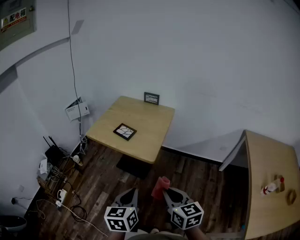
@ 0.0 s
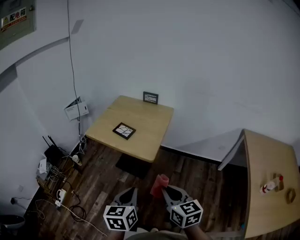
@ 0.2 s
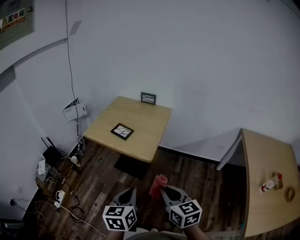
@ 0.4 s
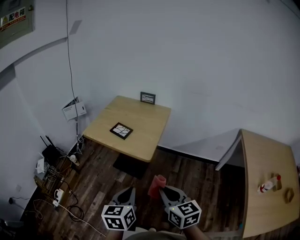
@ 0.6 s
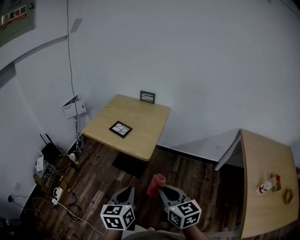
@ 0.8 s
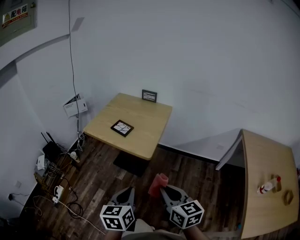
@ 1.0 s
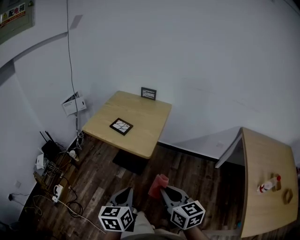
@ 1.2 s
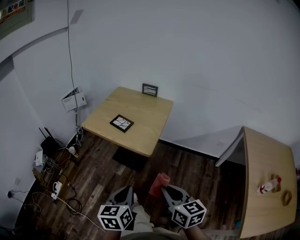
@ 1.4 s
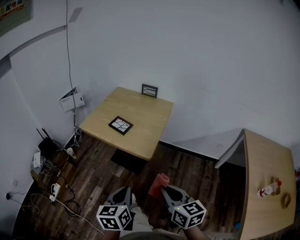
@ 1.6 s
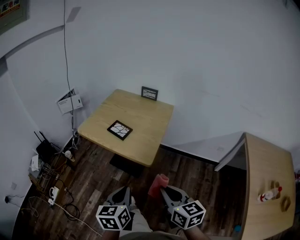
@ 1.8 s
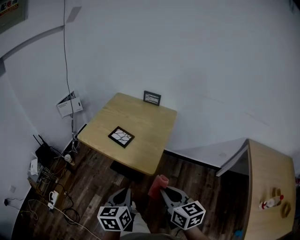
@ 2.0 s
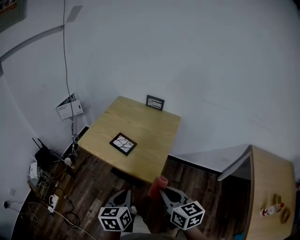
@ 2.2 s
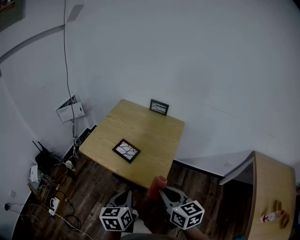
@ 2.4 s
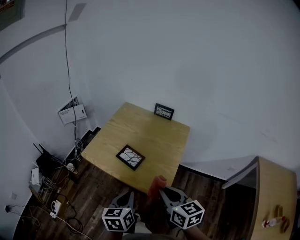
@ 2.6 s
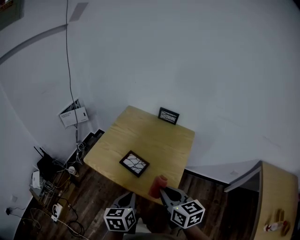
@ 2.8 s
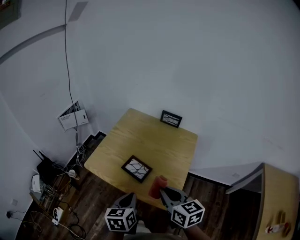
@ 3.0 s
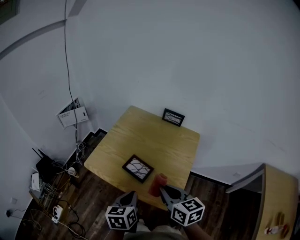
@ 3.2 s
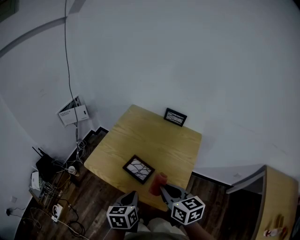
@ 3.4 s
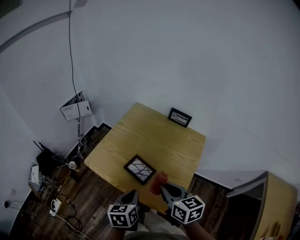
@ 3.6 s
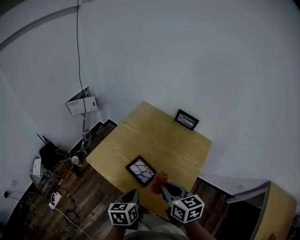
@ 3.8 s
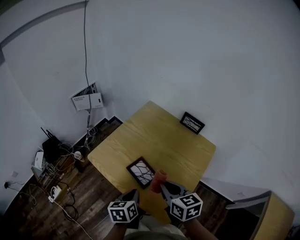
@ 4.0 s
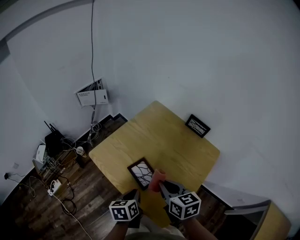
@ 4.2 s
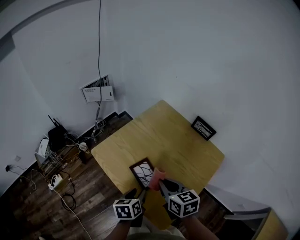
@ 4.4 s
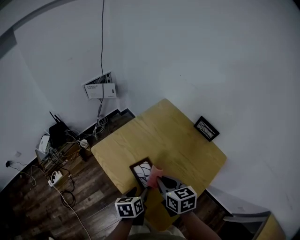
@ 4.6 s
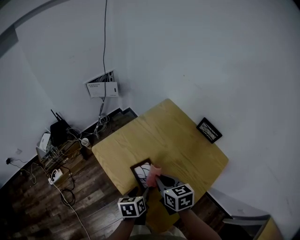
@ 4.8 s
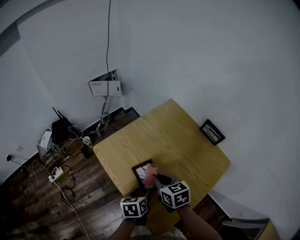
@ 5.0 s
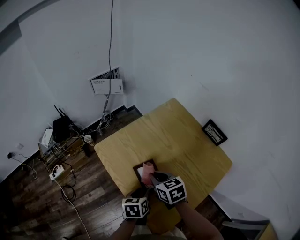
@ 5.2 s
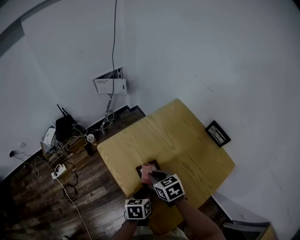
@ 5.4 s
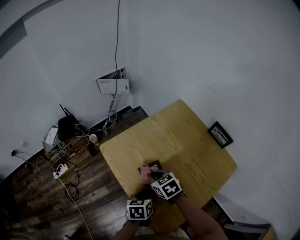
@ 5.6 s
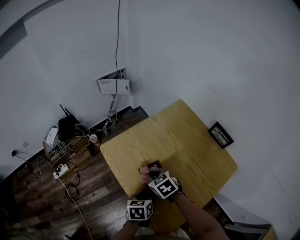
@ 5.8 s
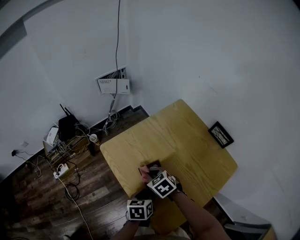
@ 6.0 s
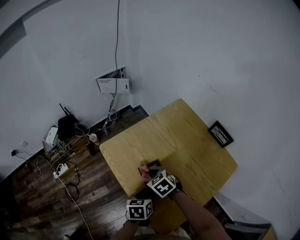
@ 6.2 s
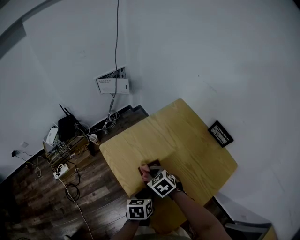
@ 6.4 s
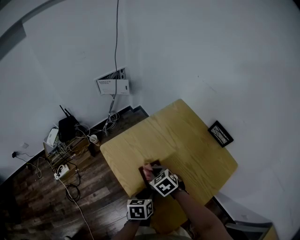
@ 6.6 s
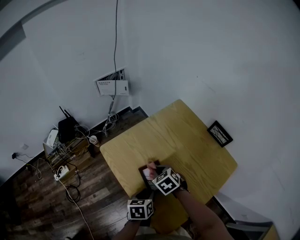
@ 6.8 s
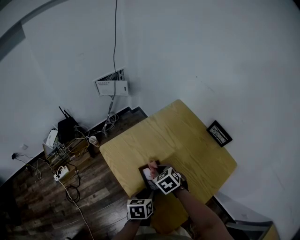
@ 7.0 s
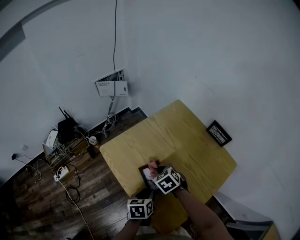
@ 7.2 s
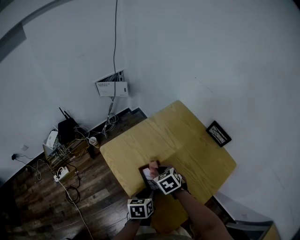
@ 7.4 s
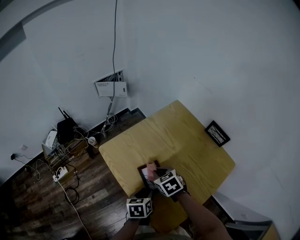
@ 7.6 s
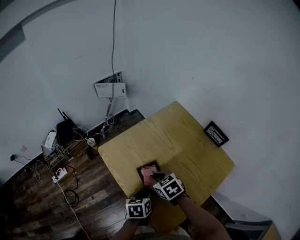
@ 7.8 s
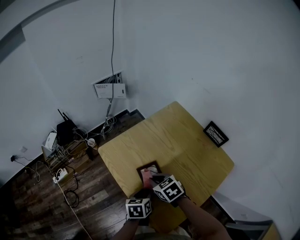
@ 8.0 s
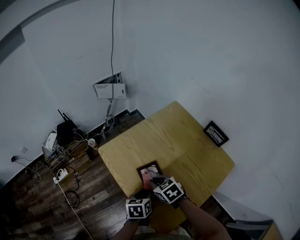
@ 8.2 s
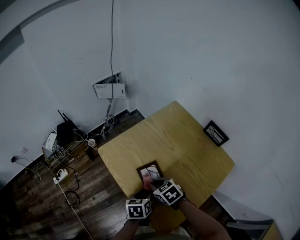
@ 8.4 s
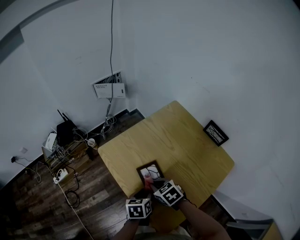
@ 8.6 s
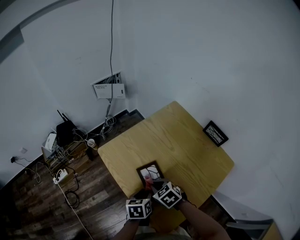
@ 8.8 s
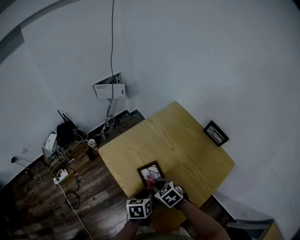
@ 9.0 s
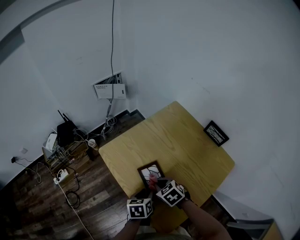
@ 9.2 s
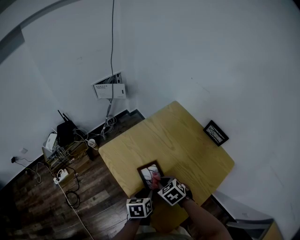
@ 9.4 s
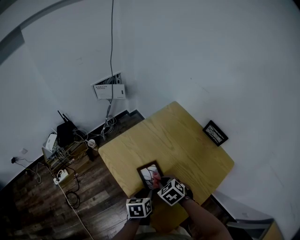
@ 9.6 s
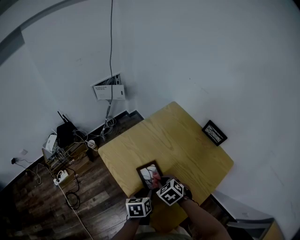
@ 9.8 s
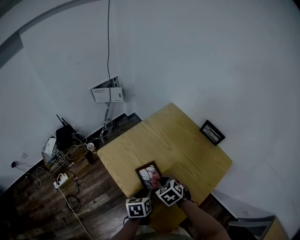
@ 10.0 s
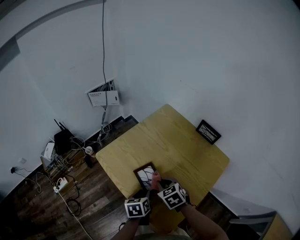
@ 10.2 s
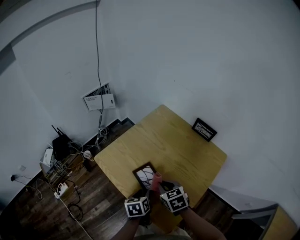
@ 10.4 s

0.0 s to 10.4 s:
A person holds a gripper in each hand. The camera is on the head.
0.0 to 1.4 s: The grippers stay close to where they were, moving slightly.
1.4 to 3.0 s: Both grippers move forward, about 35 cm.
3.0 to 4.4 s: The left gripper goes about 15 cm downward and forward, rotates approximately 30 degrees, and opens; the right gripper travels forward and downward by approximately 15 cm, and swivels about 20 degrees.
4.4 to 6.0 s: The right gripper shifts about 15 cm downward, to the left and forward, and turns by approximately 40 degrees.
6.0 to 7.4 s: The right gripper goes about 5 cm to the right.
7.4 to 9.0 s: The right gripper goes approximately 5 cm backward.
9.0 to 10.4 s: The right gripper heads upward, covering about 5 cm, and swivels roughly 30 degrees.

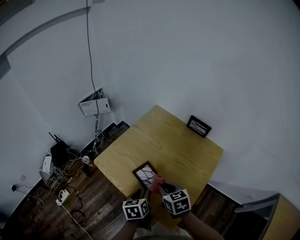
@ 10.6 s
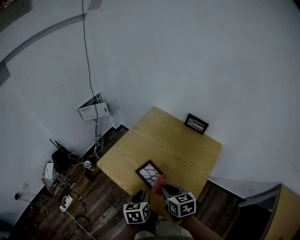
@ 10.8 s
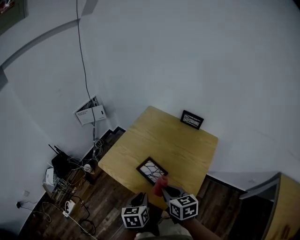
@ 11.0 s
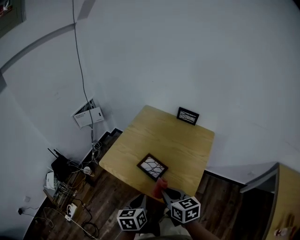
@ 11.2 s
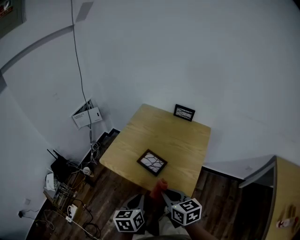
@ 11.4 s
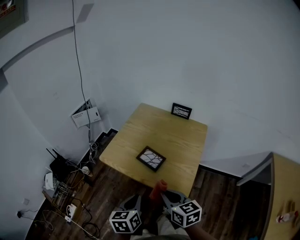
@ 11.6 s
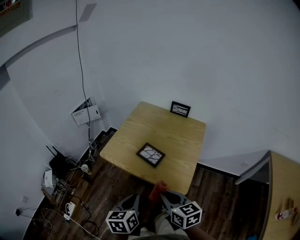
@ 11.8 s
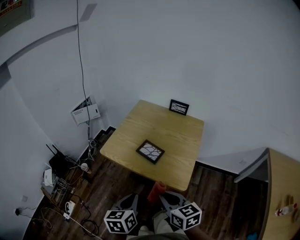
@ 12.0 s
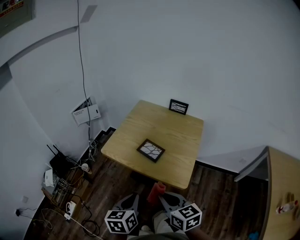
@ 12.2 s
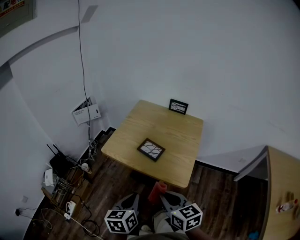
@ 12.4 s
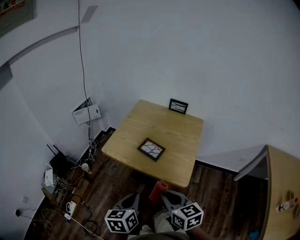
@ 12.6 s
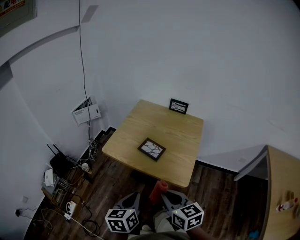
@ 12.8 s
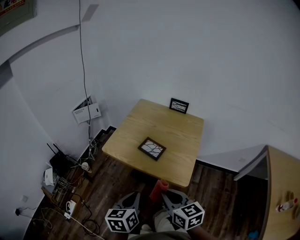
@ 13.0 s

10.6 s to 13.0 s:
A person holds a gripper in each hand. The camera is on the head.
10.6 to 11.8 s: The left gripper heads backward, upward and to the left, covering some 25 cm, changes its angle by roughly 20 degrees, and closes. Meanwhile the right gripper travels backward and upward by about 25 cm, and turns by some 20 degrees.
11.8 to 13.0 s: The right gripper changes place by some 5 cm.

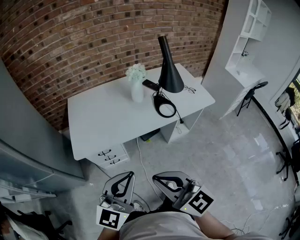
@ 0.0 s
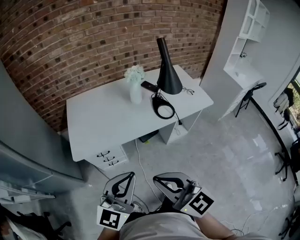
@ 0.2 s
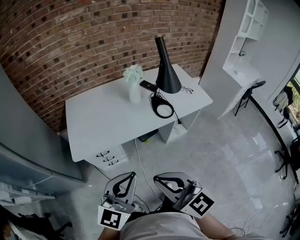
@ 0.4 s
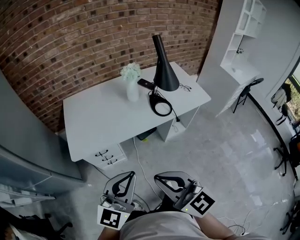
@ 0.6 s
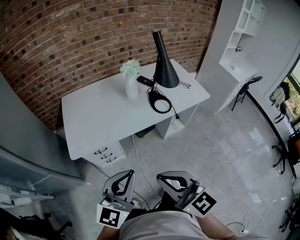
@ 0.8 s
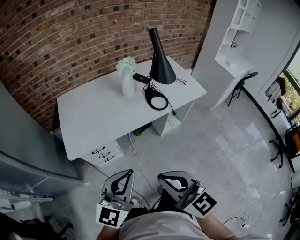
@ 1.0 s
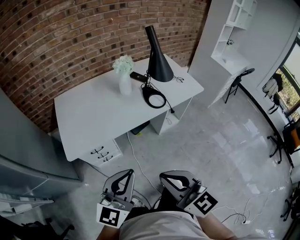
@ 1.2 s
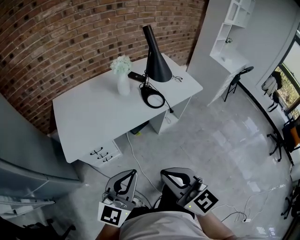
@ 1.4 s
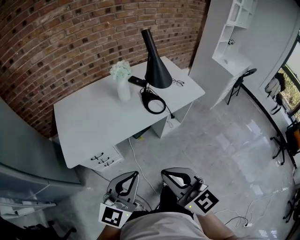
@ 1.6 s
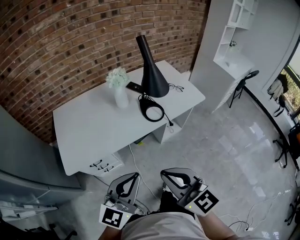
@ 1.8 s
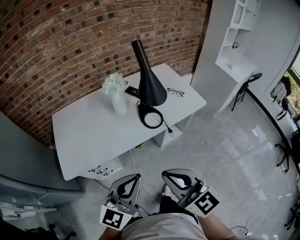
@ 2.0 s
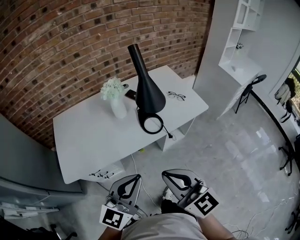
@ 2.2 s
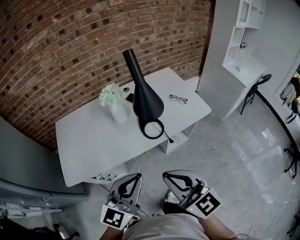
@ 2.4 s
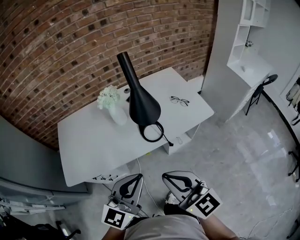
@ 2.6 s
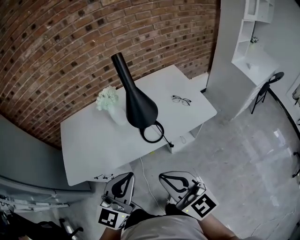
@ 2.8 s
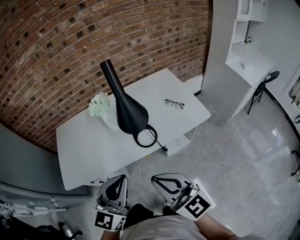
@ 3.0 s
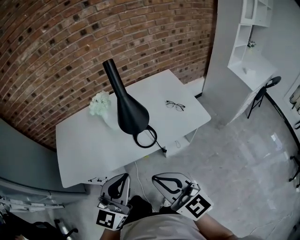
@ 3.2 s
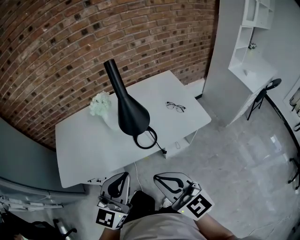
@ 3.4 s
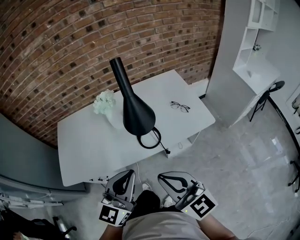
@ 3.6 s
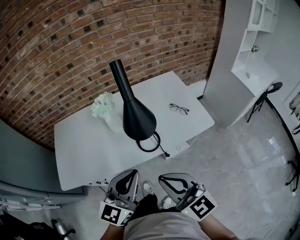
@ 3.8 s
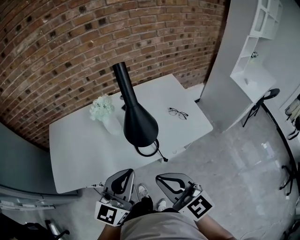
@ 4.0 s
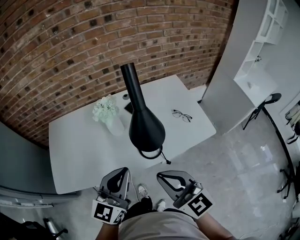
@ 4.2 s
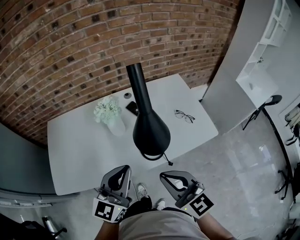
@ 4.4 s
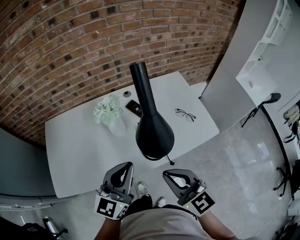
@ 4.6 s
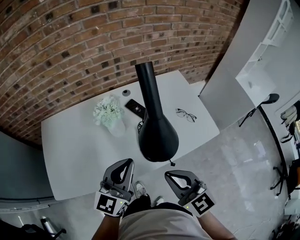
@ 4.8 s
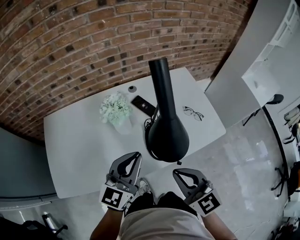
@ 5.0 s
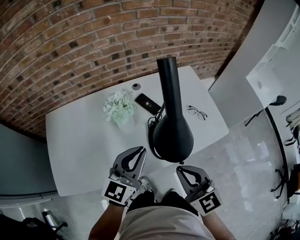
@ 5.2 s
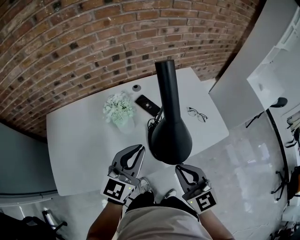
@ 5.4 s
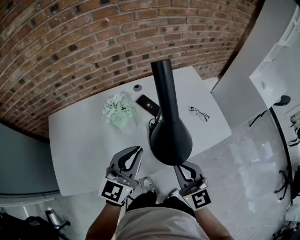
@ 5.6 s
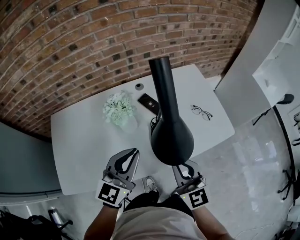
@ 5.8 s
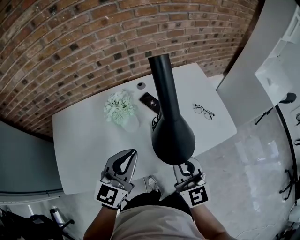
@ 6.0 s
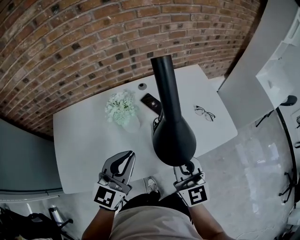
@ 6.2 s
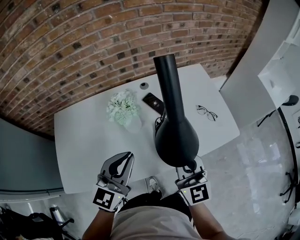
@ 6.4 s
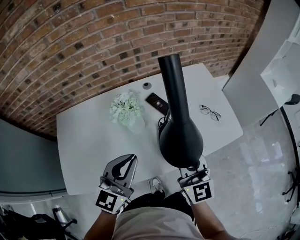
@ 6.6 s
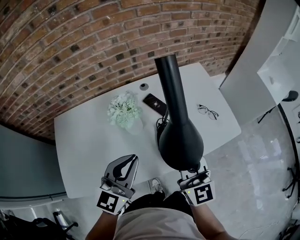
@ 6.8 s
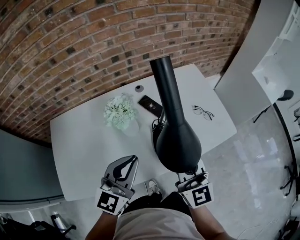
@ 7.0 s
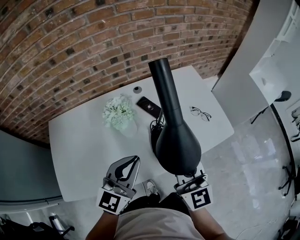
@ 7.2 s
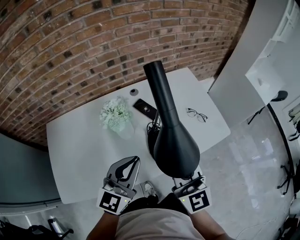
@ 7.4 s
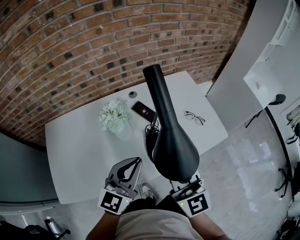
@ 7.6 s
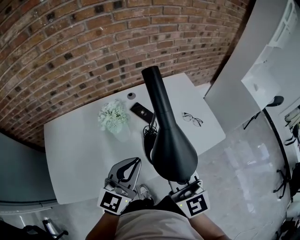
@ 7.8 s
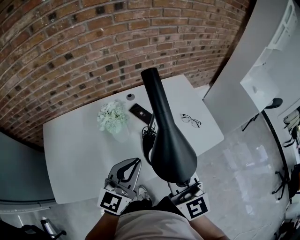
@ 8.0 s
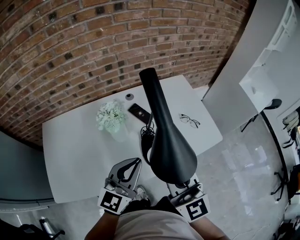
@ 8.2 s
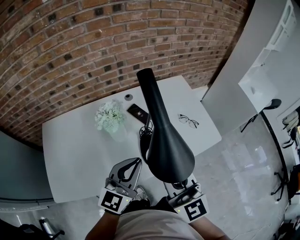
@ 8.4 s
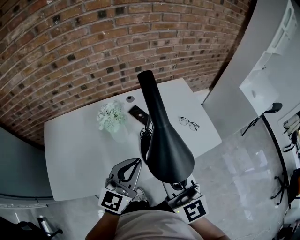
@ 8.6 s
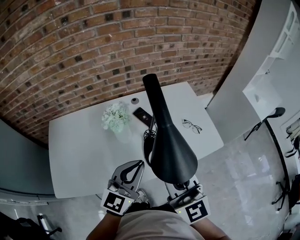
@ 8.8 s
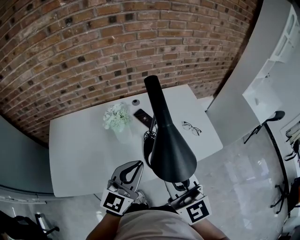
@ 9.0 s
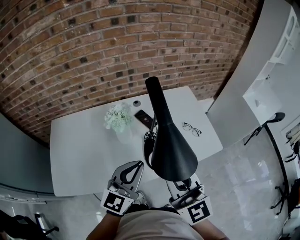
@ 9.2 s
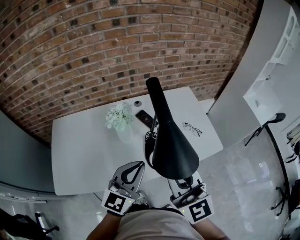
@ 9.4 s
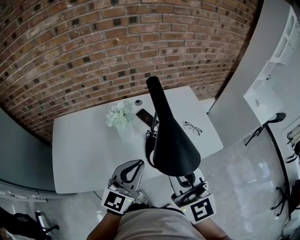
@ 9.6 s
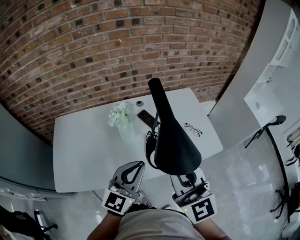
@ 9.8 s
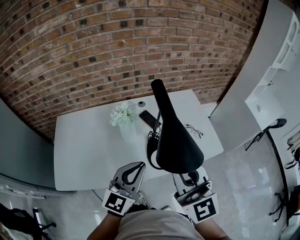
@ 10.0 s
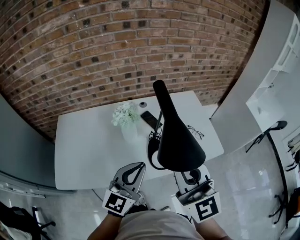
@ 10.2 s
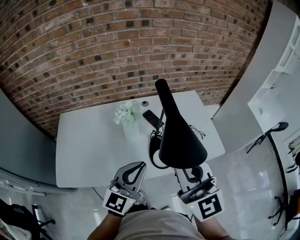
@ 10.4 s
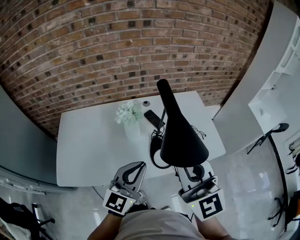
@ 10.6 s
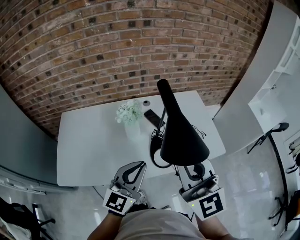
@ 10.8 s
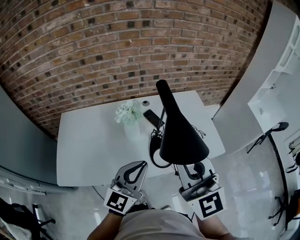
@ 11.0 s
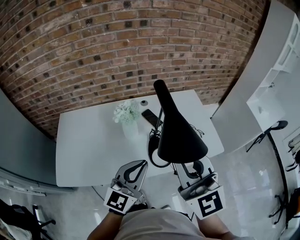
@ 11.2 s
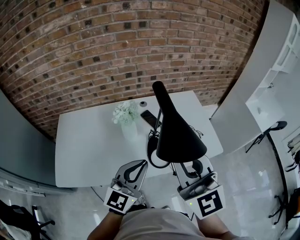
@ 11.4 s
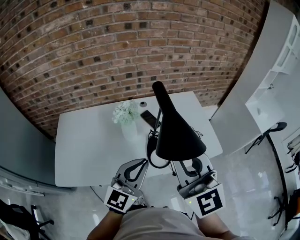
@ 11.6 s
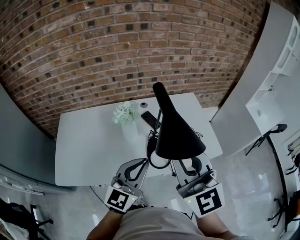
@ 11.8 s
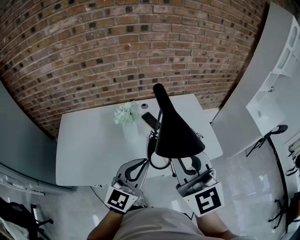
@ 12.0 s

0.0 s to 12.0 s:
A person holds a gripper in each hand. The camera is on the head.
0.0 to 1.6 s: The right gripper moves approximately 5 cm.
1.6 to 3.0 s: The right gripper goes about 25 cm to the right and forward. The left gripper travels forward and to the right by some 25 cm.
3.0 to 4.4 s: Both grippers move forward, approximately 15 cm.
4.4 to 6.0 s: The right gripper shifts roughly 15 cm forward and downward. The left gripper shifts about 10 cm forward.
6.0 to 7.6 s: The right gripper is displaced upward by about 5 cm.
7.6 to 9.0 s: The right gripper heads upward, covering approximately 5 cm.
9.0 to 10.4 s: The right gripper travels upward by about 5 cm.
10.4 to 12.0 s: The grippers make only small movements.
